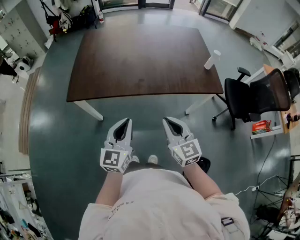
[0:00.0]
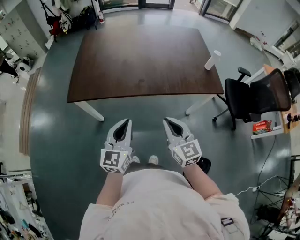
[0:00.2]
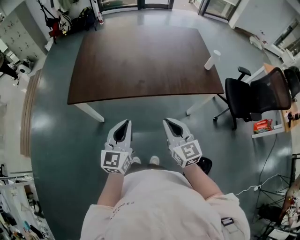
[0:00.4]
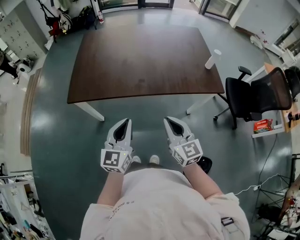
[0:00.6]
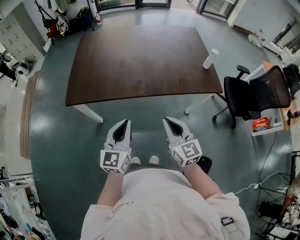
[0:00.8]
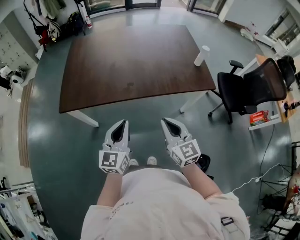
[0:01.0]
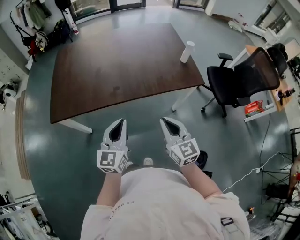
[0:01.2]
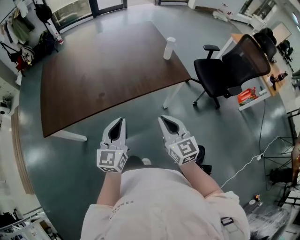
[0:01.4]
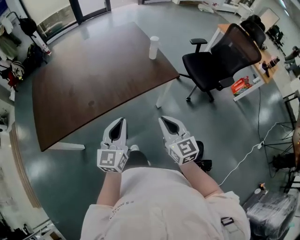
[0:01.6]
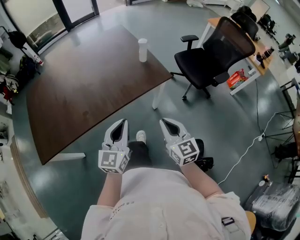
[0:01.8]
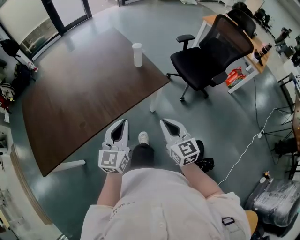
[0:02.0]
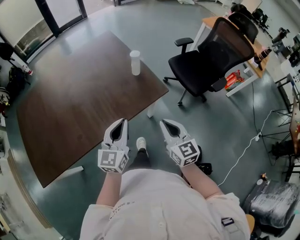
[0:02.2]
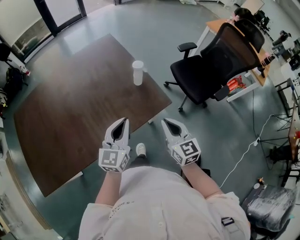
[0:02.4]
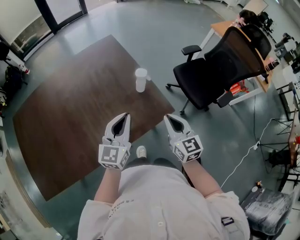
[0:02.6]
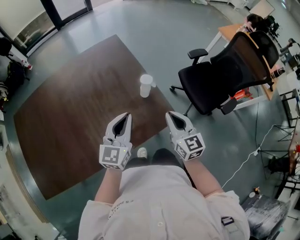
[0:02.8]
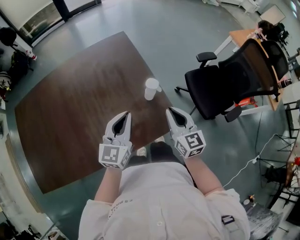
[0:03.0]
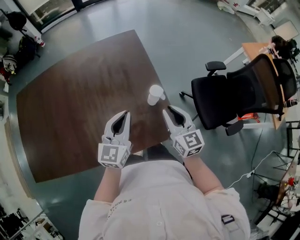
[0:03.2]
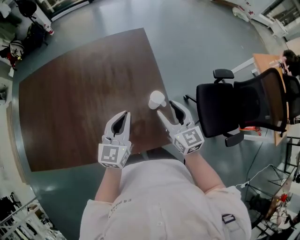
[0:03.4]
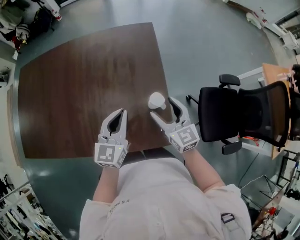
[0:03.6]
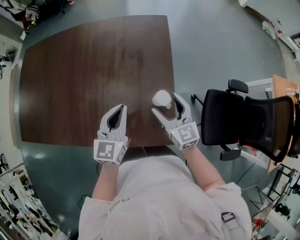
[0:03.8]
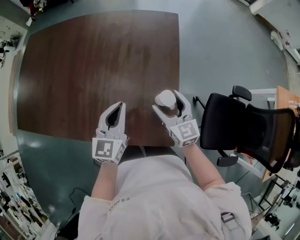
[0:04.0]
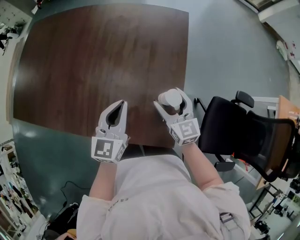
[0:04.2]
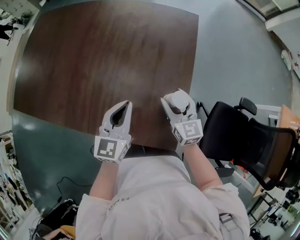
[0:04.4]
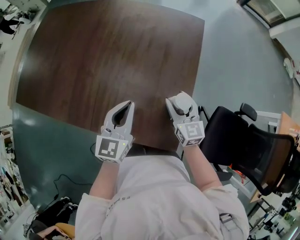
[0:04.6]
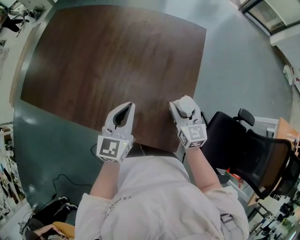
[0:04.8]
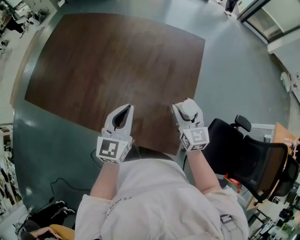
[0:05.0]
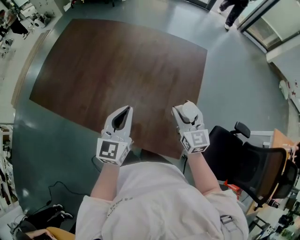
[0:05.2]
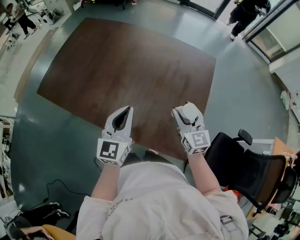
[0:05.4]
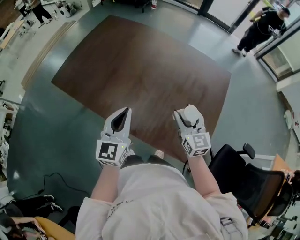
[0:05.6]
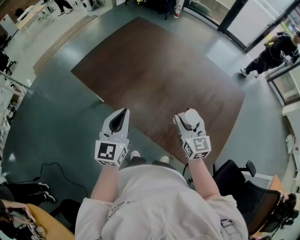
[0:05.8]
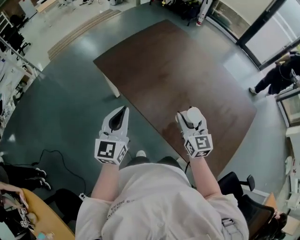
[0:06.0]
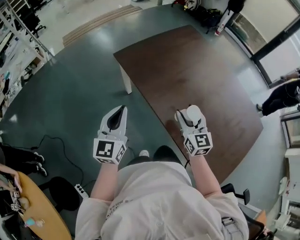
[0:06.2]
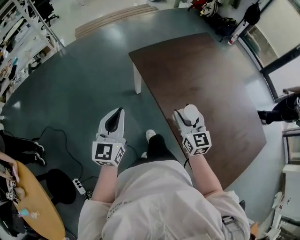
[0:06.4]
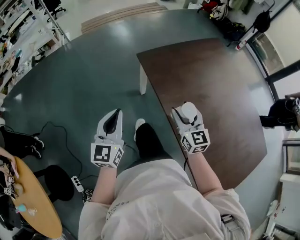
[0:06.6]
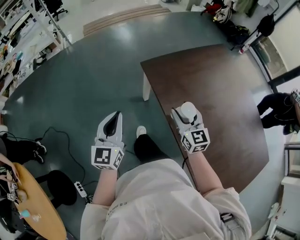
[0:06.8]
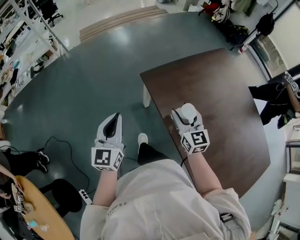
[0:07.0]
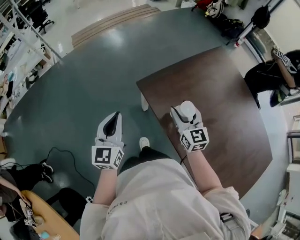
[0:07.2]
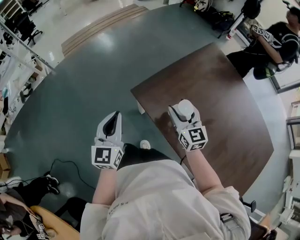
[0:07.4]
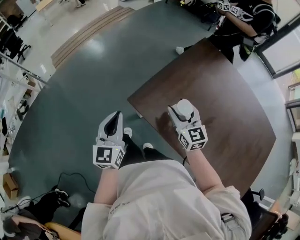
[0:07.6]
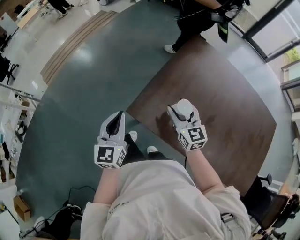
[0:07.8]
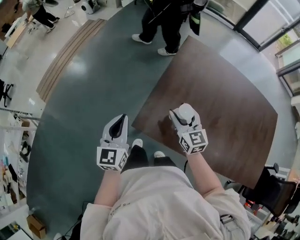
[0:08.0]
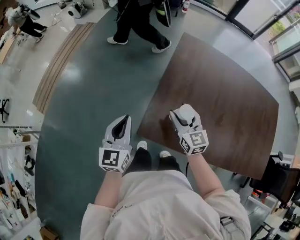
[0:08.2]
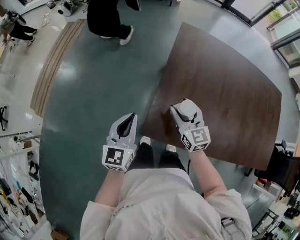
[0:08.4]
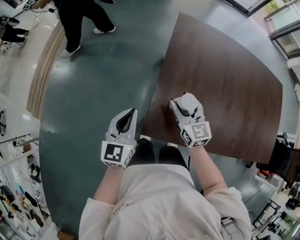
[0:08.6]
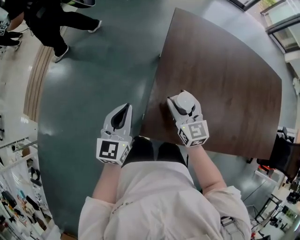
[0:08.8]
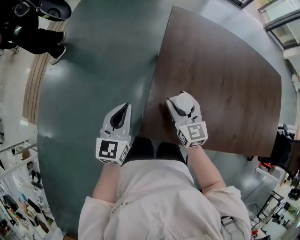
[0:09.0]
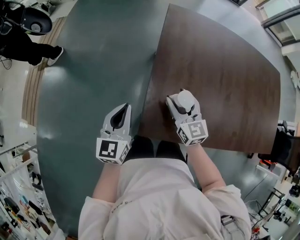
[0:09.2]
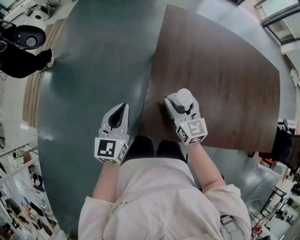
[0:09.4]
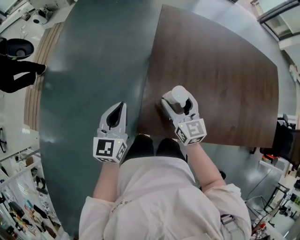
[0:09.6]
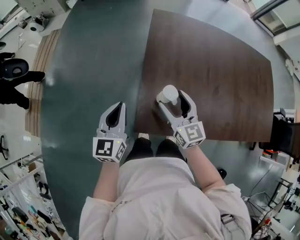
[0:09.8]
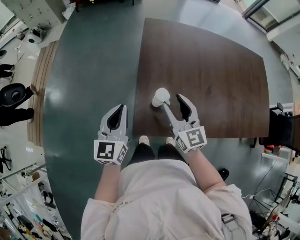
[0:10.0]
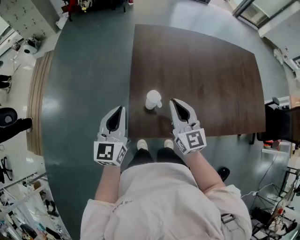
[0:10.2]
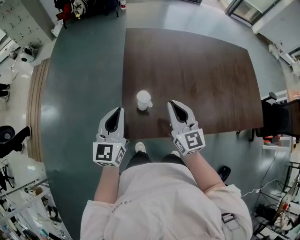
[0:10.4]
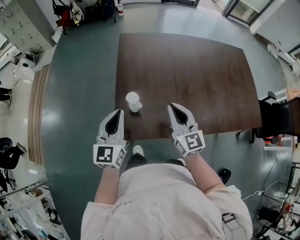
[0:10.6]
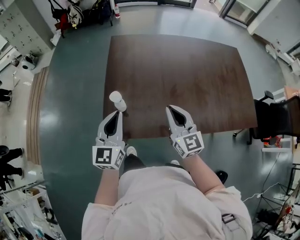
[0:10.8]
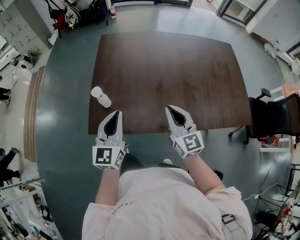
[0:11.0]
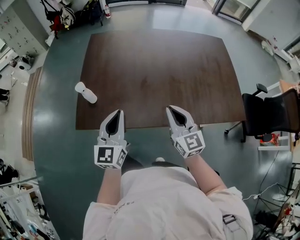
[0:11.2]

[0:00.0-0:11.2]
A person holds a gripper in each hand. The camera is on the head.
0.0 to 1.6 s: The grippers both shift to the right by some 20 cm. The left gripper rotates some 20 degrees, while the right gripper turns by about 20 degrees.
1.6 to 3.2 s: The two grippers travel together, forward, about 40 cm.
3.2 to 4.8 s: The right gripper ends up approximately 15 cm from where it was, swivels about 30 degrees, and opens up, while the left gripper ends up approximately 5 cm from where it was, and rotates roughly 30 degrees.
4.8 to 6.4 s: Both grippers are carried some 60 cm. The left gripper changes its angle by about 50 degrees. The right gripper swivels some 50 degrees.
6.4 to 8.0 s: The left gripper ends up about 50 cm from where it was, and rotates approximately 30 degrees. Meanwhile the right gripper ends up roughly 40 cm from where it was, and rotates about 30 degrees.
8.0 to 9.6 s: The left gripper shifts roughly 15 cm forward and downward, and turns by roughly 20 degrees, while the right gripper is displaced downward by roughly 5 cm.
9.6 to 11.2 s: The right gripper moves to the right and backward, some 40 cm, and closes. The left gripper goes approximately 35 cm to the right.

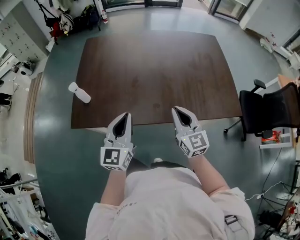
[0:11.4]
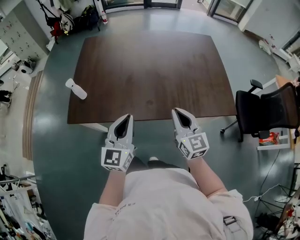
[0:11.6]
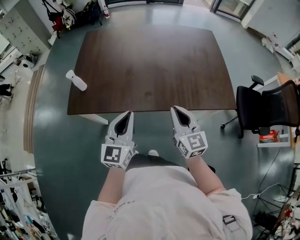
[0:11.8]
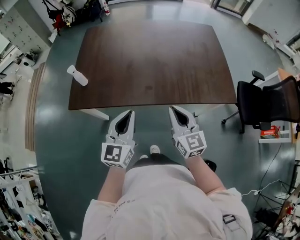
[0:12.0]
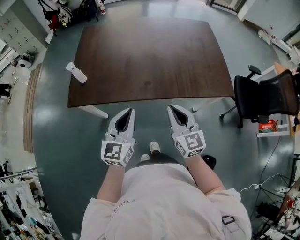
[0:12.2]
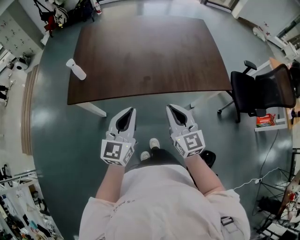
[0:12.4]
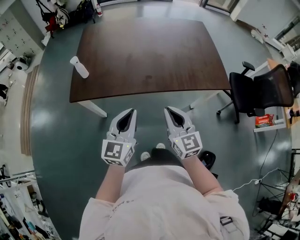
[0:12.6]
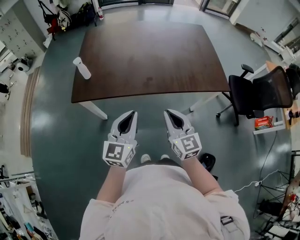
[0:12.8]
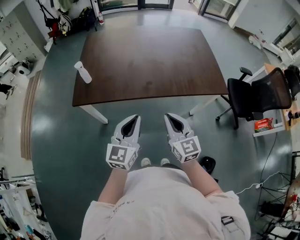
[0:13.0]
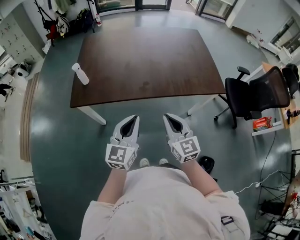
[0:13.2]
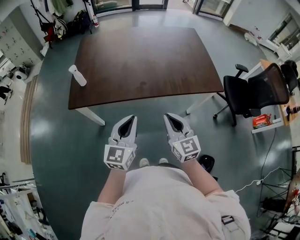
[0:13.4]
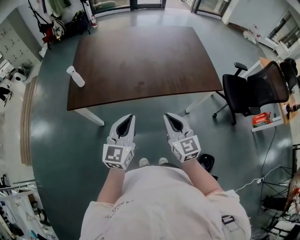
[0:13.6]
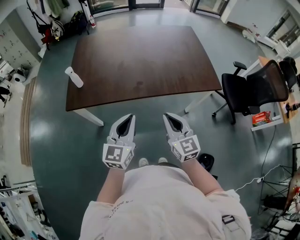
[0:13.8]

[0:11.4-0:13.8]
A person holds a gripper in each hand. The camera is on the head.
11.4 to 12.6 s: The grippers both shift backward by approximately 15 cm.
12.6 to 13.8 s: The grippers move only a little.

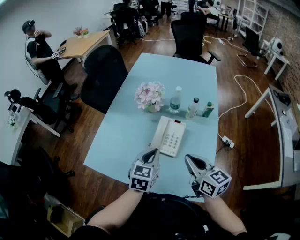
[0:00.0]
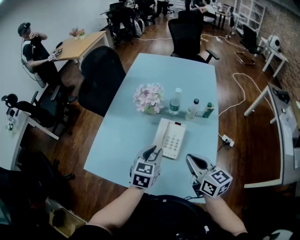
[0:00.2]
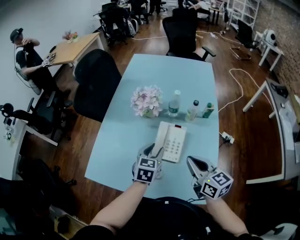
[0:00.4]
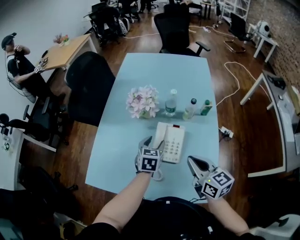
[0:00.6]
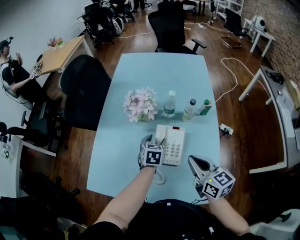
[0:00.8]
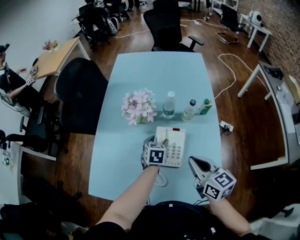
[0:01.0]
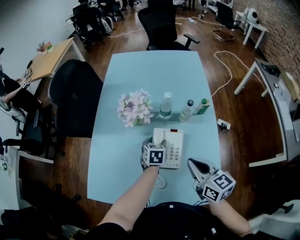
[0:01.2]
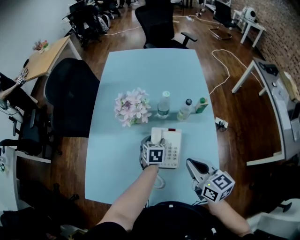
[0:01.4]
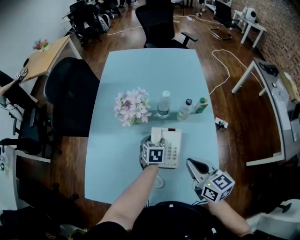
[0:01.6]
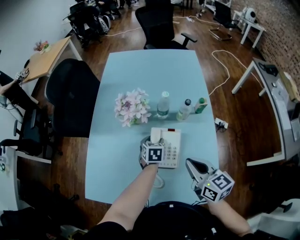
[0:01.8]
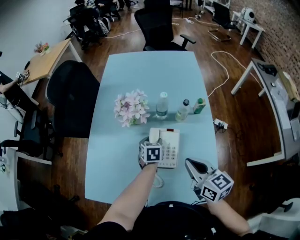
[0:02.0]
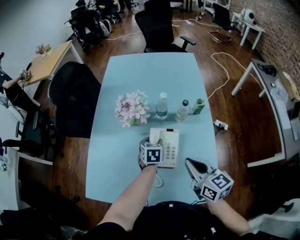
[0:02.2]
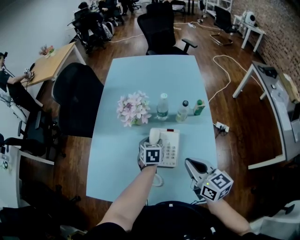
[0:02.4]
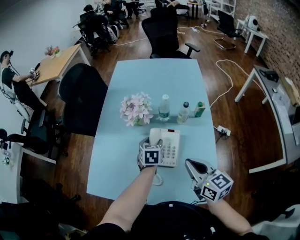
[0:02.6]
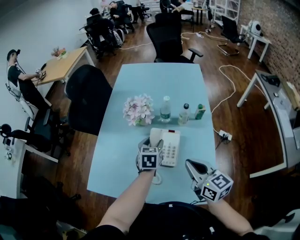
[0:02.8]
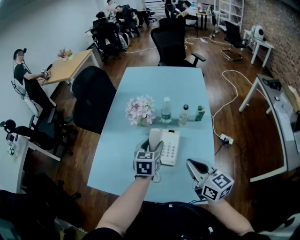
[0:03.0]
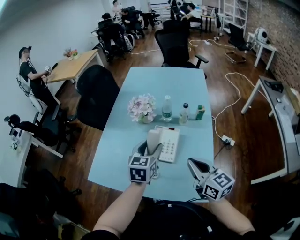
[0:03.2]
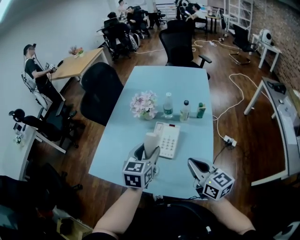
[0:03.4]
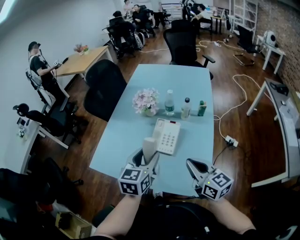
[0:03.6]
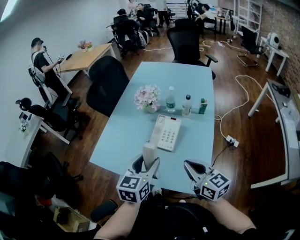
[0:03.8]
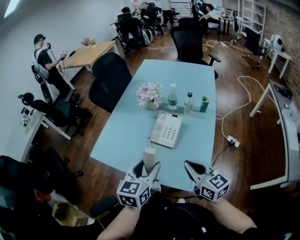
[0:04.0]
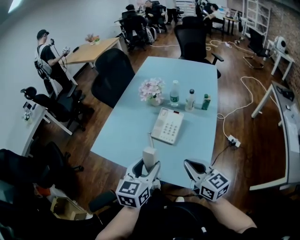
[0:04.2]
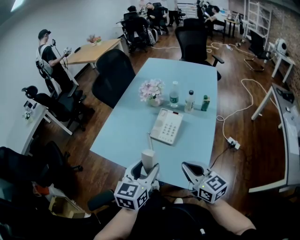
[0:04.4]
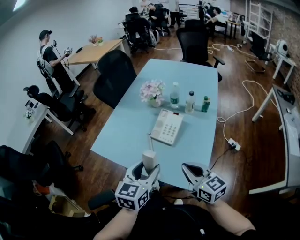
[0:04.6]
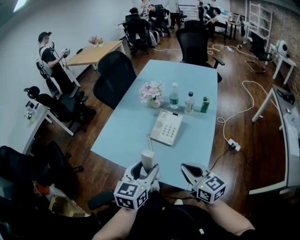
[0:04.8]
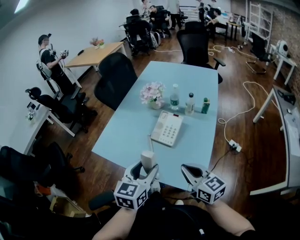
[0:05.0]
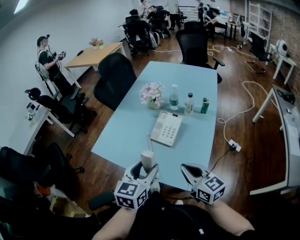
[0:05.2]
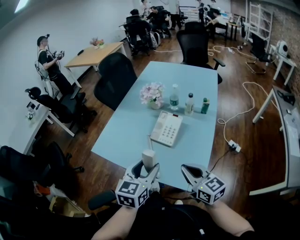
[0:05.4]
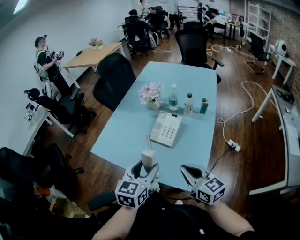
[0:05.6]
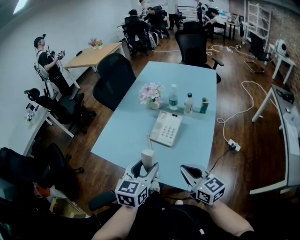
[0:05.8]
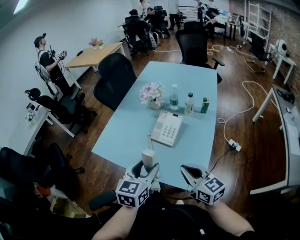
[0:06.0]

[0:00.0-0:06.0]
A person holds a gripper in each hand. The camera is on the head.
0.0 to 1.6 s: The right gripper shifts roughly 10 cm forward; the left gripper goes approximately 25 cm forward and downward, and opens up.
1.6 to 3.0 s: The left gripper travels upward and backward by about 20 cm. The right gripper heads backward and upward, covering about 10 cm.
3.0 to 4.4 s: The right gripper is displaced backward by about 15 cm, while the left gripper travels backward by some 25 cm.
4.4 to 6.0 s: The two grippers keep their place.

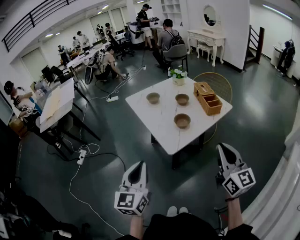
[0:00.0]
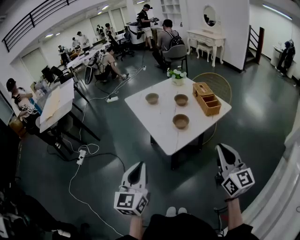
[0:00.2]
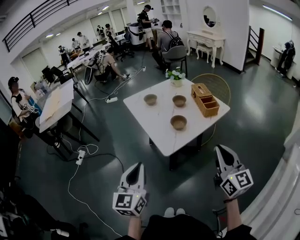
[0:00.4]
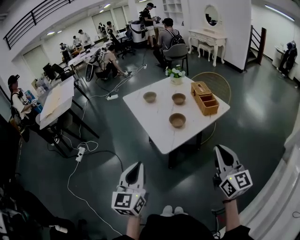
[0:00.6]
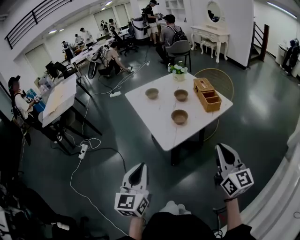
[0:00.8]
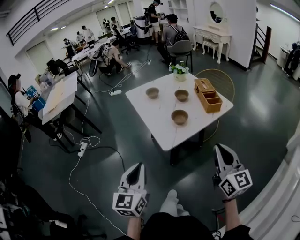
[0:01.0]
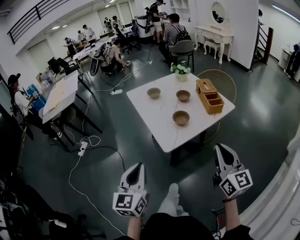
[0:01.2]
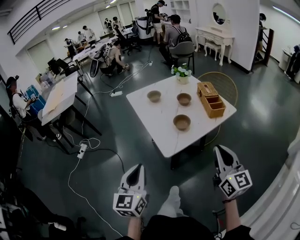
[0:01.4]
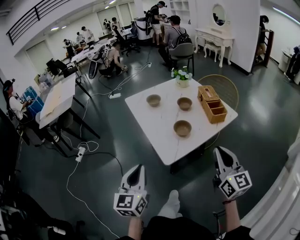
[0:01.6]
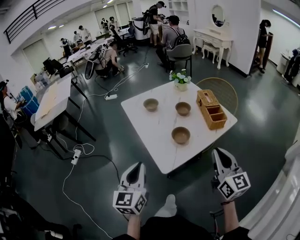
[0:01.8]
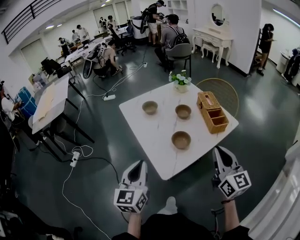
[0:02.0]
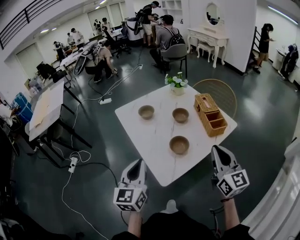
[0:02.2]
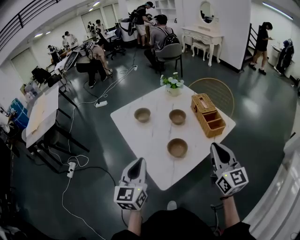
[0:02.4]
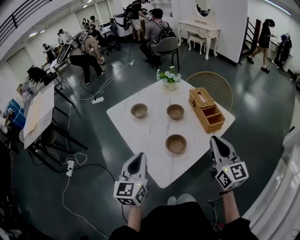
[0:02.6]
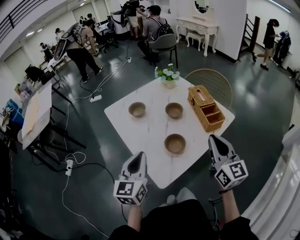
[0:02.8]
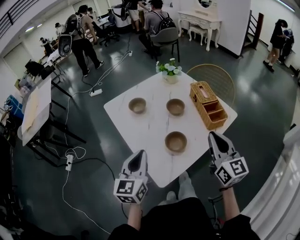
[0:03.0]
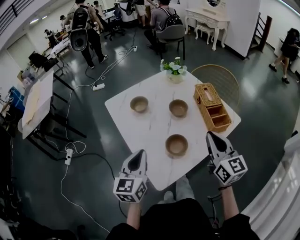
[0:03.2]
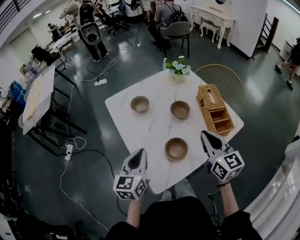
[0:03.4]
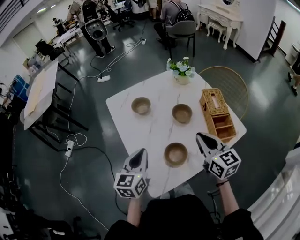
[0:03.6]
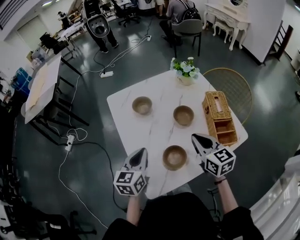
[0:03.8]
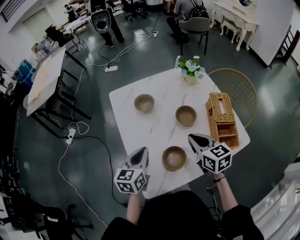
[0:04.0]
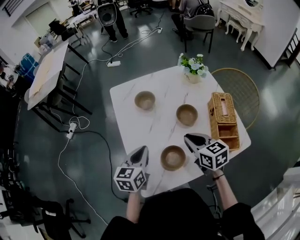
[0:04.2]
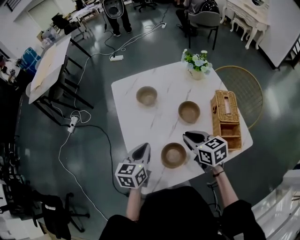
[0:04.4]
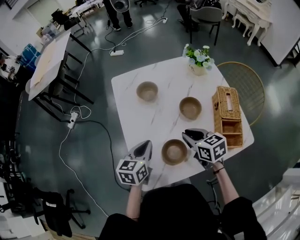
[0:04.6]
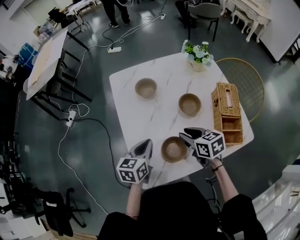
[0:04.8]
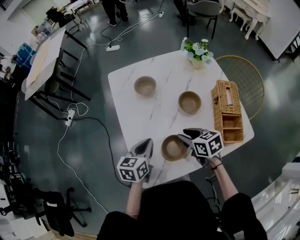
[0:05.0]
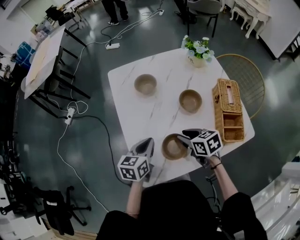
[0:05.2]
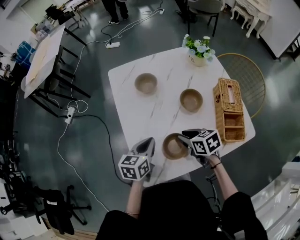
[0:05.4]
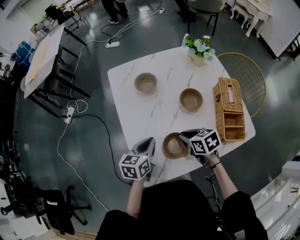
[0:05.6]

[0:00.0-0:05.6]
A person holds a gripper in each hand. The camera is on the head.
0.0 to 1.4 s: The right gripper shifts by about 5 cm.
1.4 to 2.8 s: The grippers both shift forward by about 25 cm.
2.8 to 4.2 s: The right gripper shifts by roughly 25 cm, and tips its fingers downward by about 30 degrees. Meanwhile the left gripper shifts by some 15 cm, and rotates some 20 degrees.
4.2 to 5.6 s: The left gripper goes roughly 5 cm downward. The right gripper moves downward, some 10 cm, and swivels some 20 degrees.
